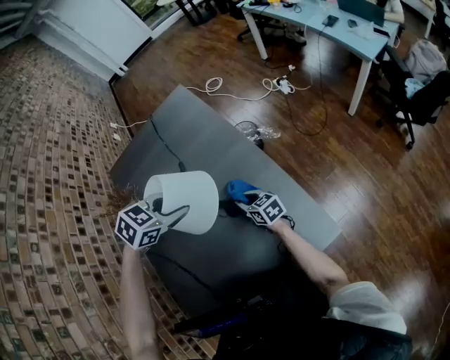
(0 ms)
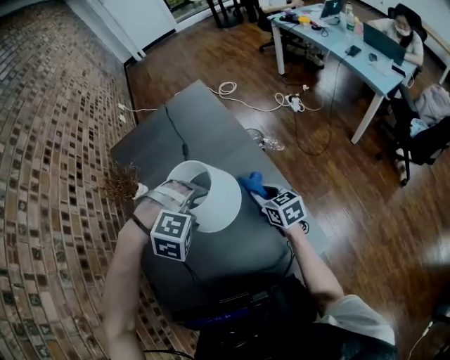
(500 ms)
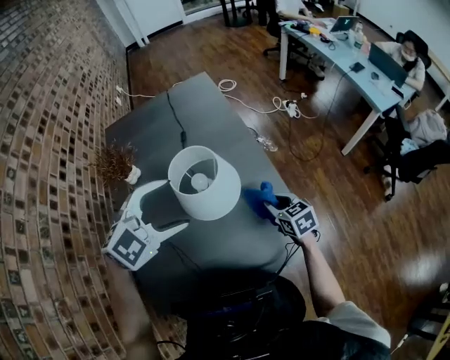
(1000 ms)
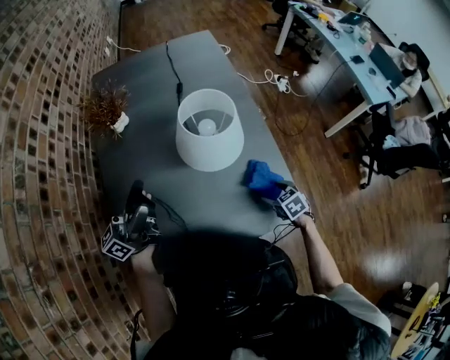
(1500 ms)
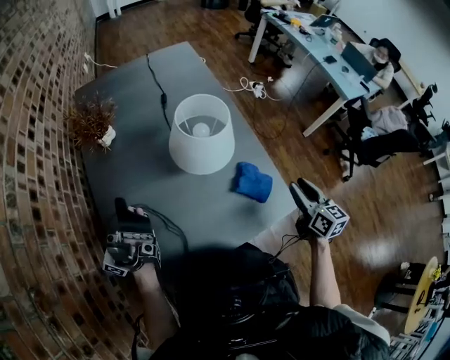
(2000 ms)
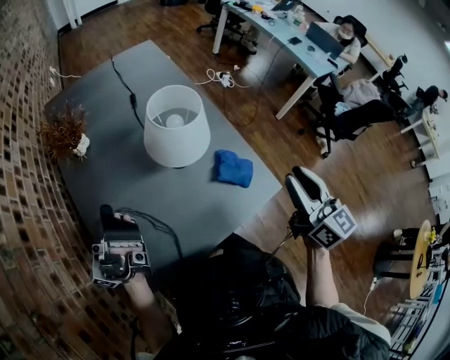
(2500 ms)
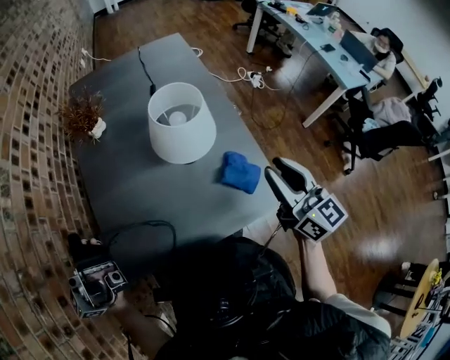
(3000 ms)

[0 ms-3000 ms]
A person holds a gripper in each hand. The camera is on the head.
0 ms to 1500 ms: The left gripper goes about 25 cm backward and to the left, tips its fingers upward by roughly 80 degrees, and opens up. The right gripper is displaced backward and to the right by some 20 cm, angles its fingers downward, by roughly 30 degrees, and opens its fingers.
1500 ms to 3000 ms: The right gripper travels upward by roughly 35 cm, angles its fingers upward, by approximately 60 degrees, and closes its fingers. The left gripper shifts roughly 20 cm backward and upward, and rotates approximately 20 degrees.

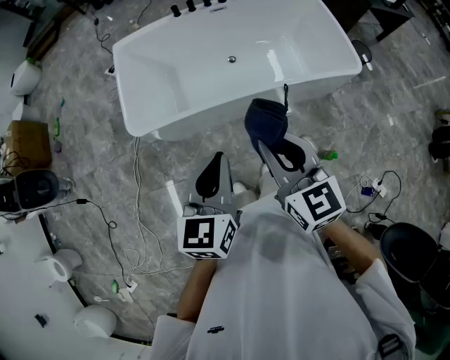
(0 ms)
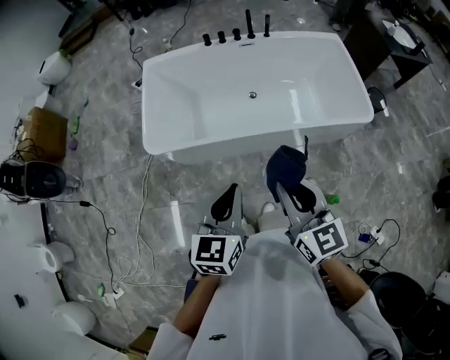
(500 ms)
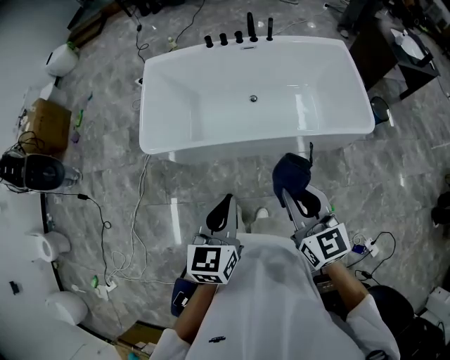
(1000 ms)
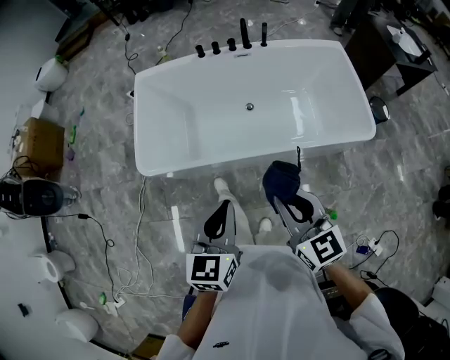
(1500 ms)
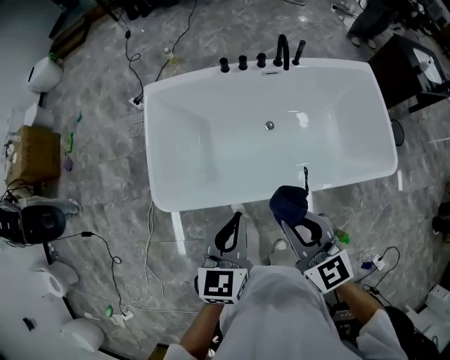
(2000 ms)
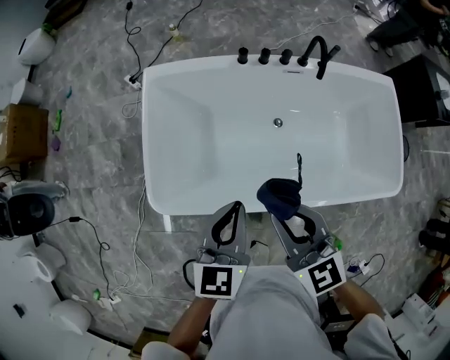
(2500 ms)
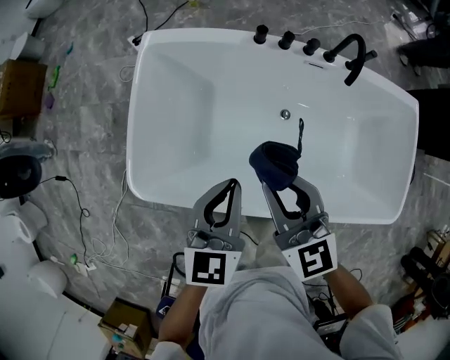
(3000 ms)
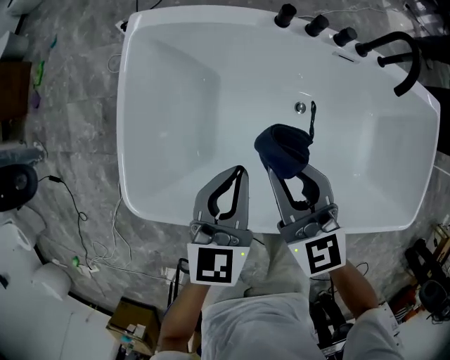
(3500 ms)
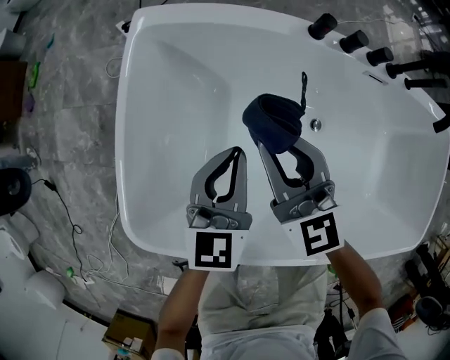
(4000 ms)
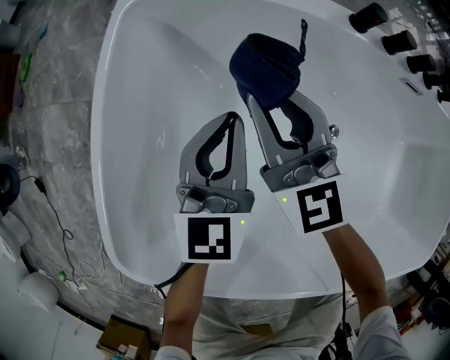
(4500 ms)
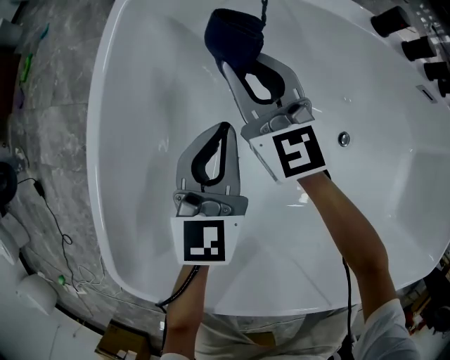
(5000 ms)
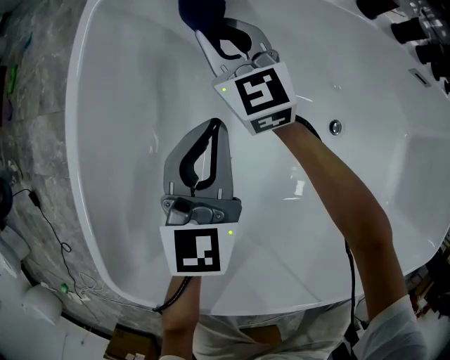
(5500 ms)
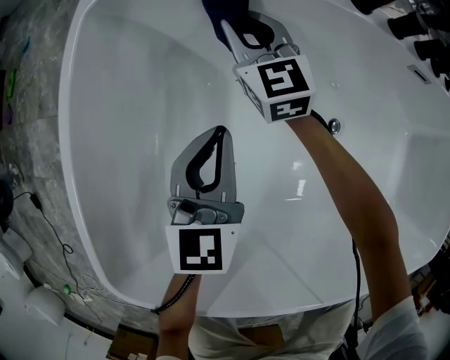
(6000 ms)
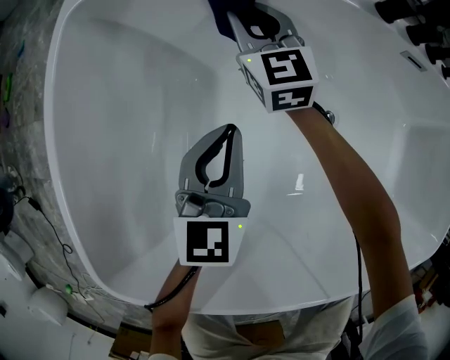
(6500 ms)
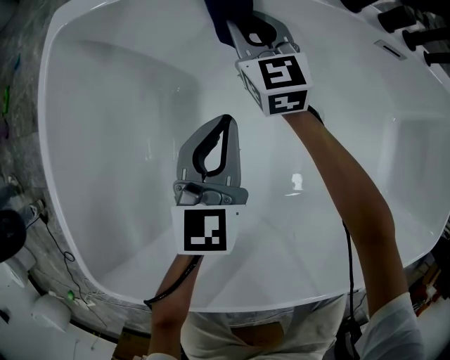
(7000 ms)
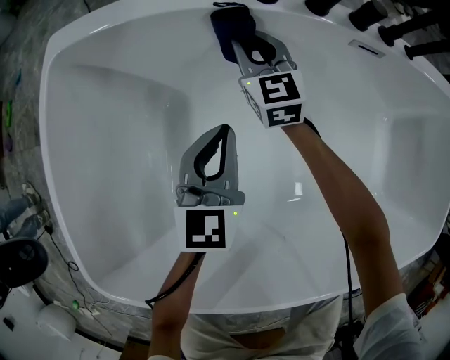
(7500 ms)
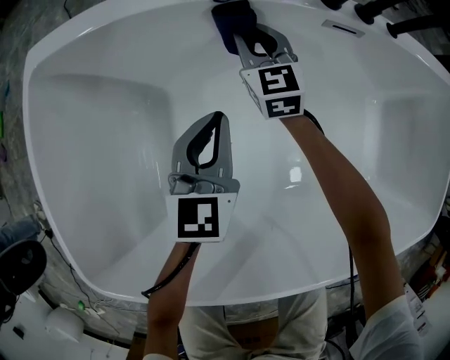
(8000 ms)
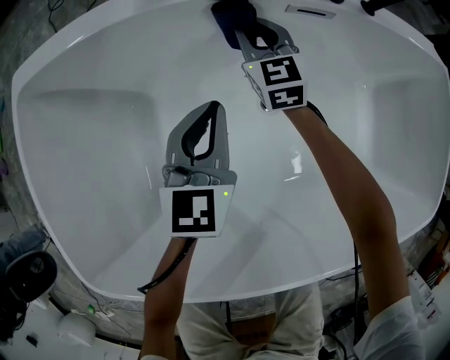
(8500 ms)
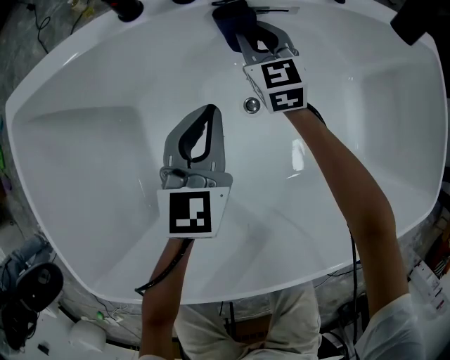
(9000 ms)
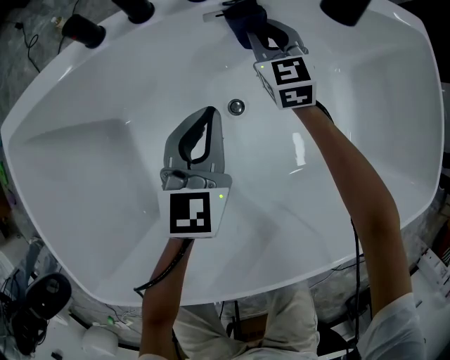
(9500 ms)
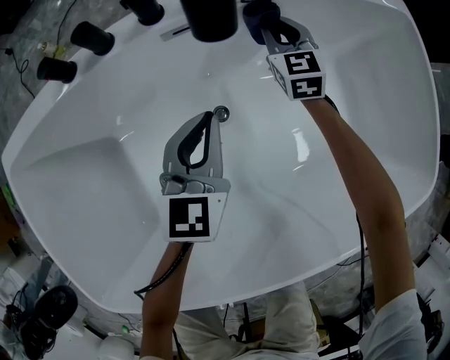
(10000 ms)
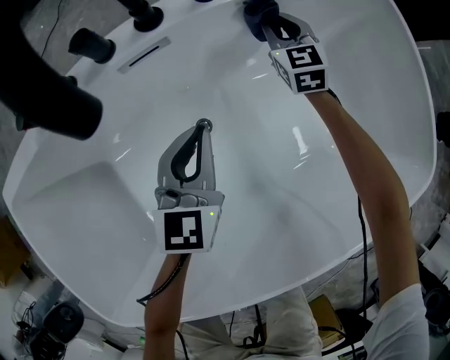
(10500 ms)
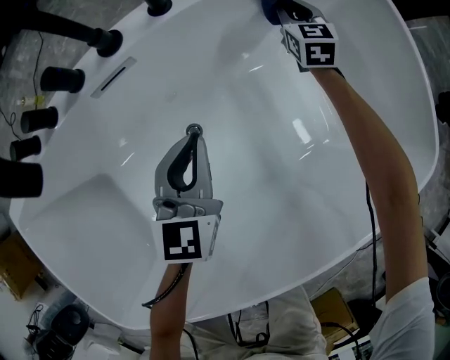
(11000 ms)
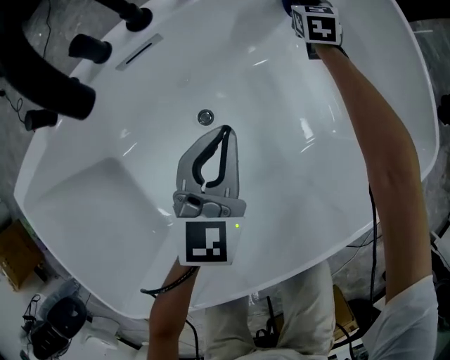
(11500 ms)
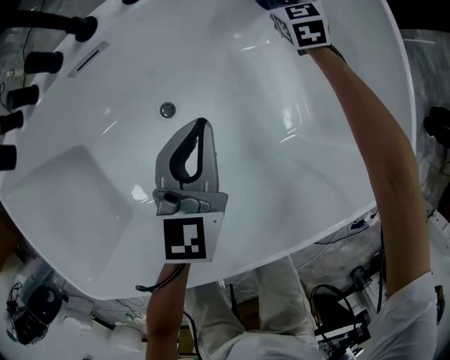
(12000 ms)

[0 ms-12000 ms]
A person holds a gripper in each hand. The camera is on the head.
0 ms to 2000 ms: Both grippers move forward, about 25 cm.
2000 ms to 4000 ms: Both grippers travel together forward and downward, some 50 cm.
4000 ms to 6000 ms: The right gripper goes approximately 35 cm forward and downward, while the left gripper moves downward, approximately 15 cm.
6000 ms to 8000 ms: The two grippers go about 20 cm to the right.
8000 ms to 10000 ms: The left gripper heads to the right, covering about 25 cm; the right gripper moves to the right, some 40 cm.
10000 ms to 12000 ms: The right gripper shifts about 25 cm to the right and forward. The left gripper goes approximately 20 cm to the right.

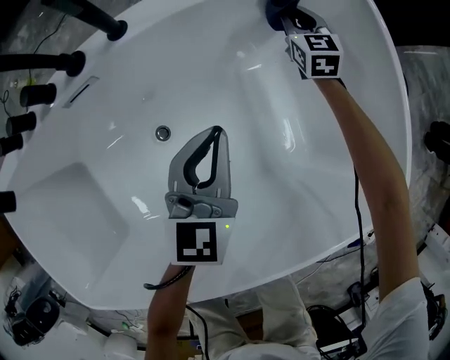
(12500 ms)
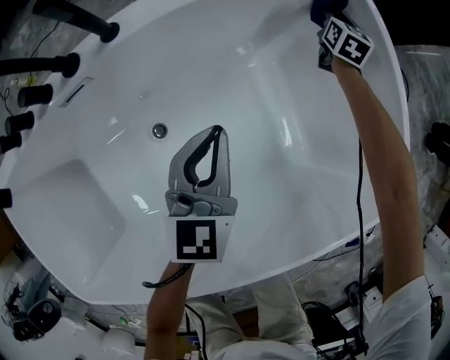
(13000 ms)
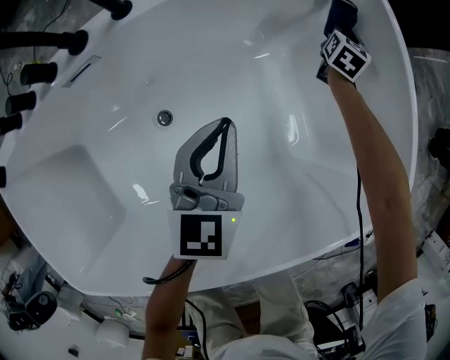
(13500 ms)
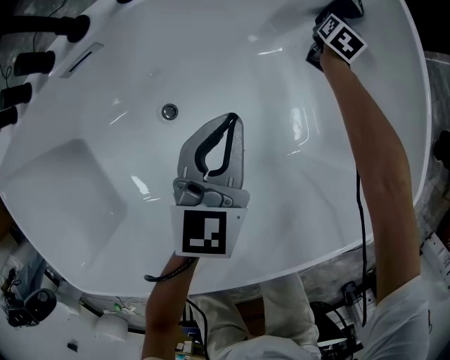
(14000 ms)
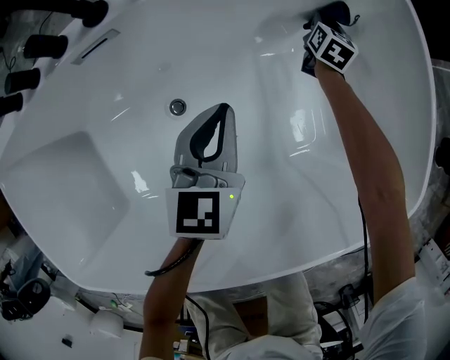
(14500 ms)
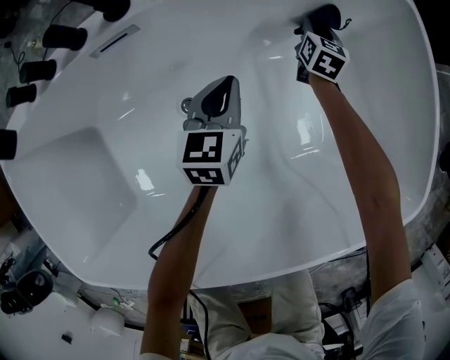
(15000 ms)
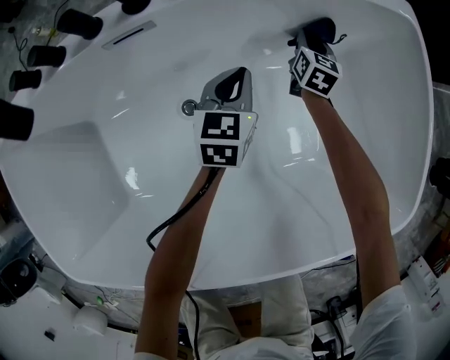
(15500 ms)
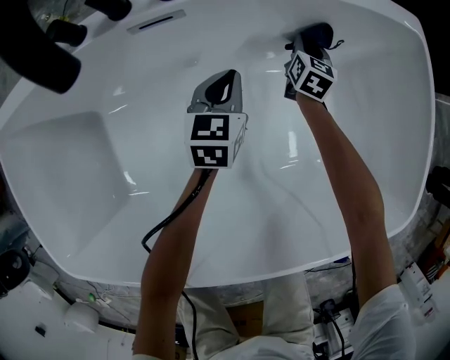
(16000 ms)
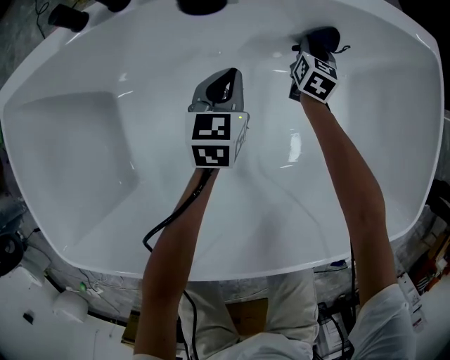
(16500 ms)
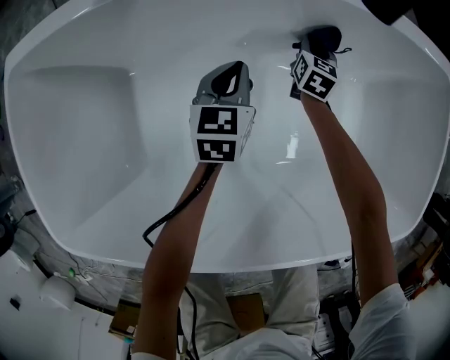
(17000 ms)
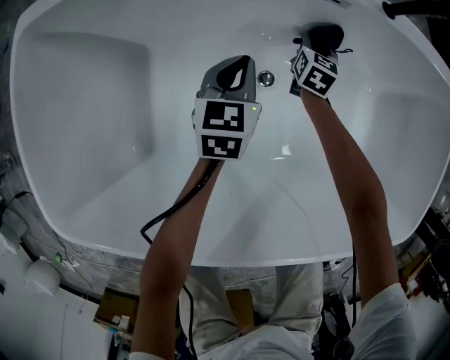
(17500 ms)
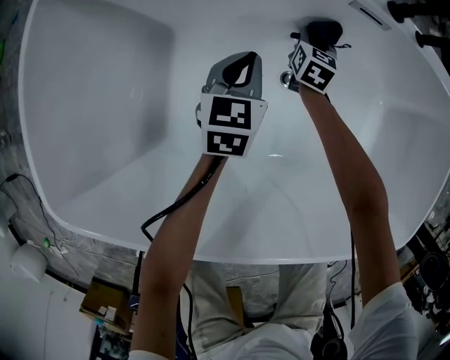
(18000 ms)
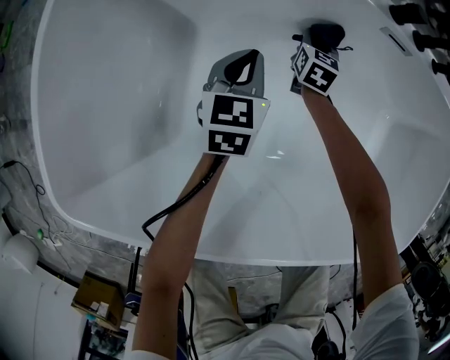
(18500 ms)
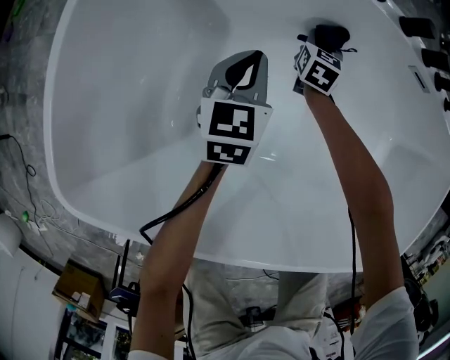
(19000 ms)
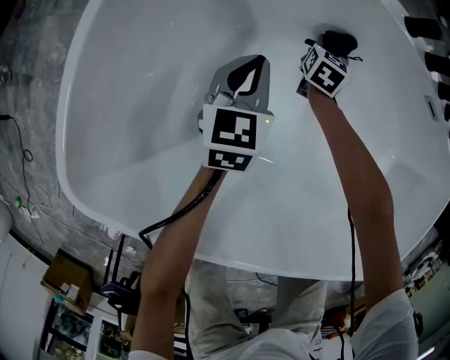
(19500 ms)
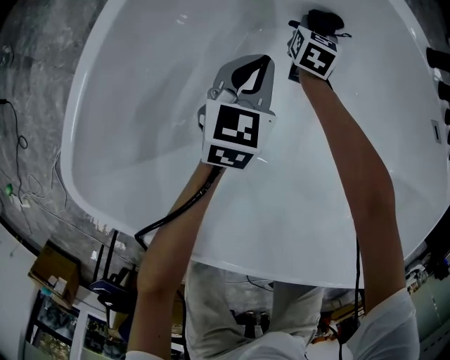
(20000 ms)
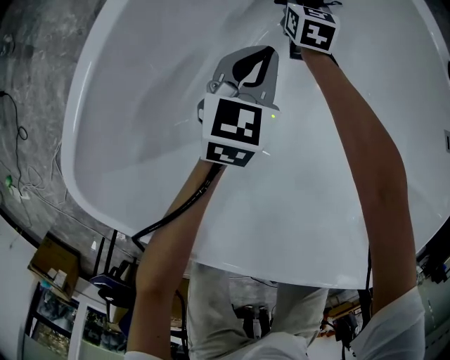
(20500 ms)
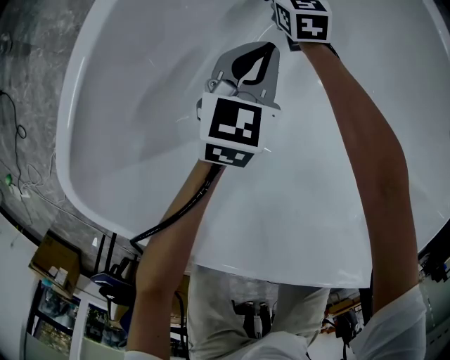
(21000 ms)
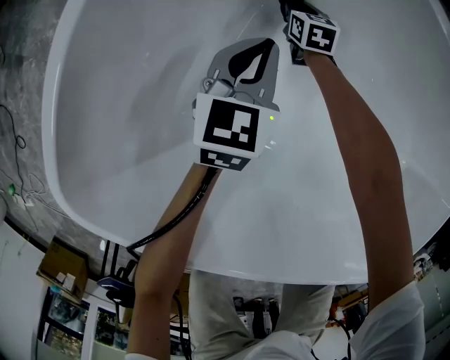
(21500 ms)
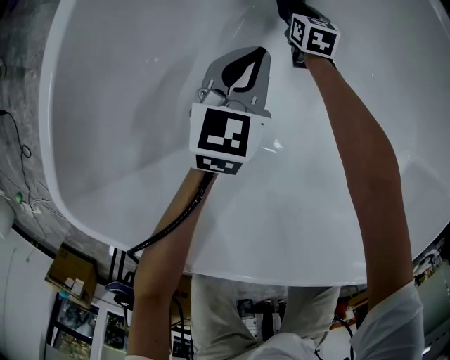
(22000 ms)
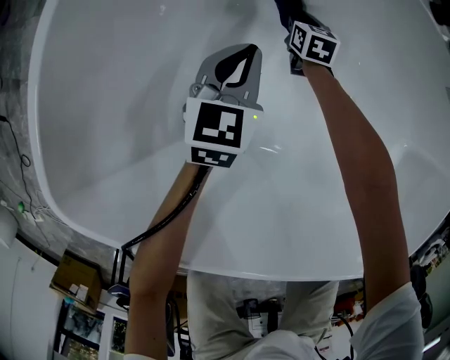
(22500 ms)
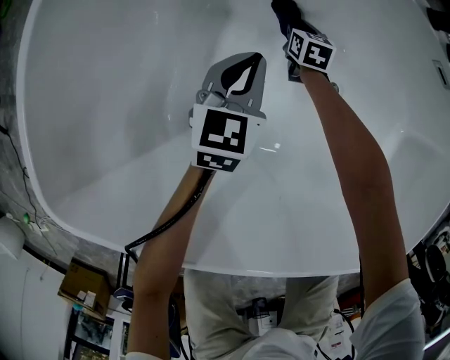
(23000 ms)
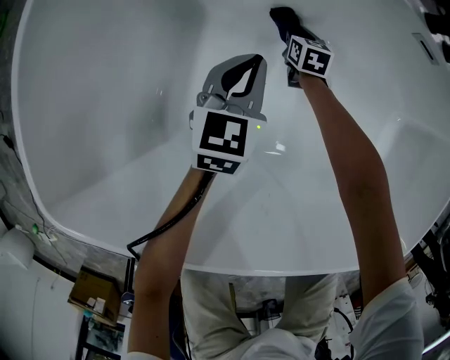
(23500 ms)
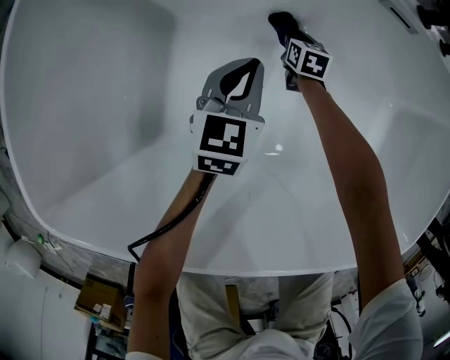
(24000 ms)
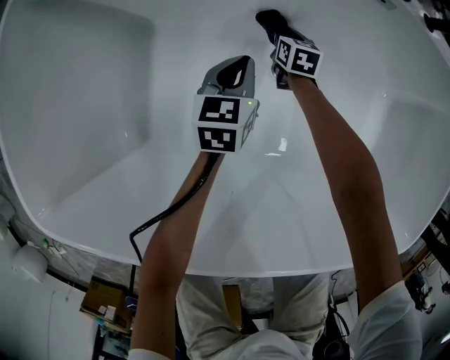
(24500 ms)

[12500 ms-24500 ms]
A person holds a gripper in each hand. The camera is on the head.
12500 ms to 14500 ms: The left gripper shifts approximately 5 cm downward, while the right gripper goes some 10 cm downward, reaches approximately 15 cm to the right, then returns, and swivels about 30 degrees.
14500 ms to 16500 ms: The left gripper goes some 20 cm to the left and downward. Meanwhile the right gripper goes approximately 25 cm to the left and backward.
16500 ms to 18500 ms: The two grippers go approximately 35 cm to the left. The right gripper swivels about 20 degrees.
18500 ms to 20500 ms: The left gripper is displaced to the left by roughly 25 cm. The right gripper moves to the left, approximately 40 cm, and swivels roughly 30 degrees.
20500 ms to 22500 ms: The left gripper moves to the right, about 10 cm; the right gripper goes approximately 20 cm to the right, downward and backward.
22500 ms to 24500 ms: Both grippers move to the right, some 30 cm.
